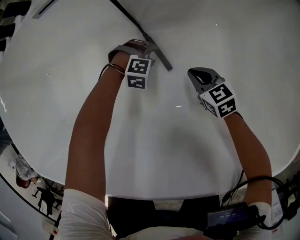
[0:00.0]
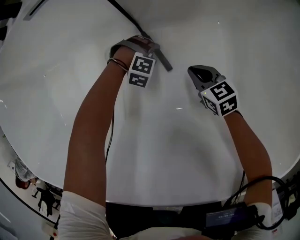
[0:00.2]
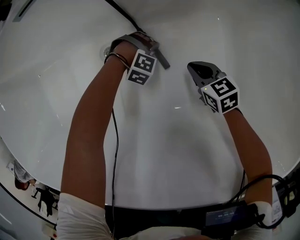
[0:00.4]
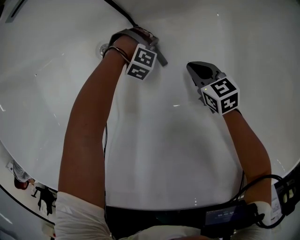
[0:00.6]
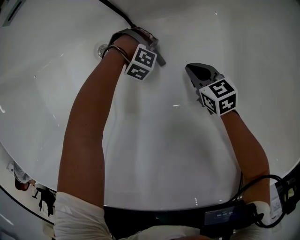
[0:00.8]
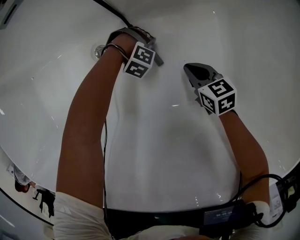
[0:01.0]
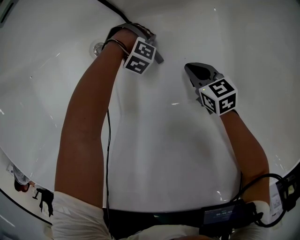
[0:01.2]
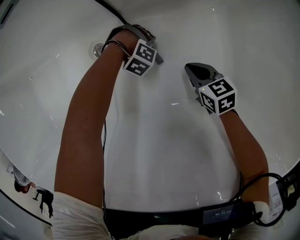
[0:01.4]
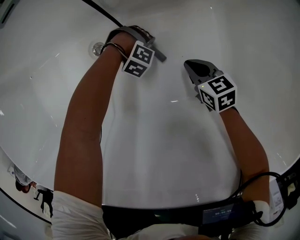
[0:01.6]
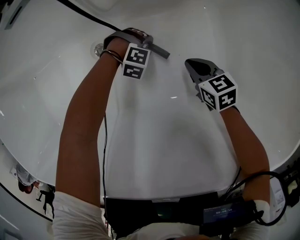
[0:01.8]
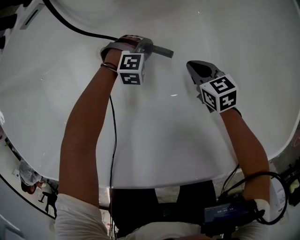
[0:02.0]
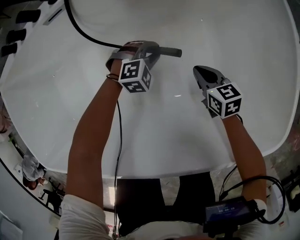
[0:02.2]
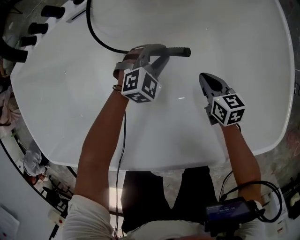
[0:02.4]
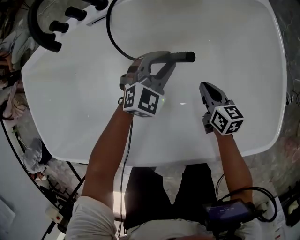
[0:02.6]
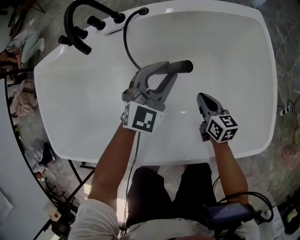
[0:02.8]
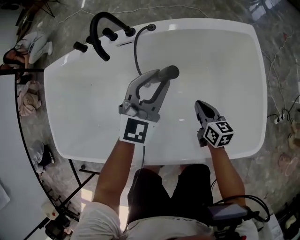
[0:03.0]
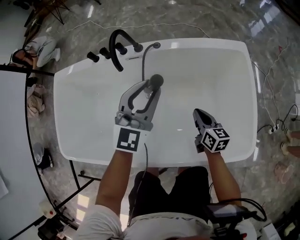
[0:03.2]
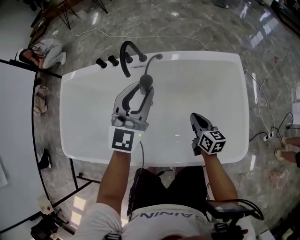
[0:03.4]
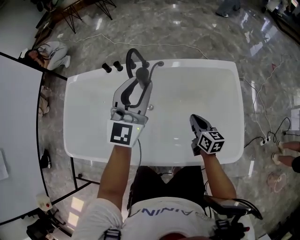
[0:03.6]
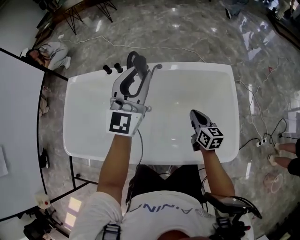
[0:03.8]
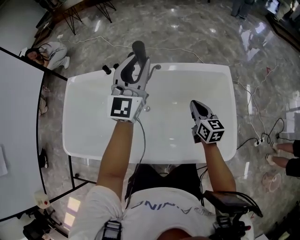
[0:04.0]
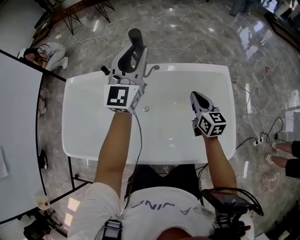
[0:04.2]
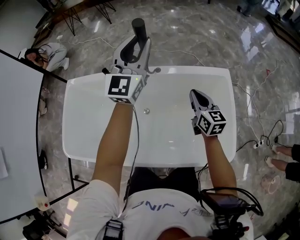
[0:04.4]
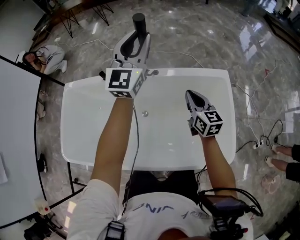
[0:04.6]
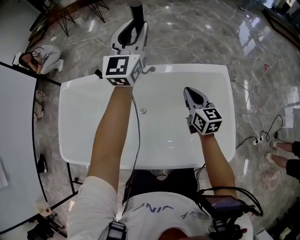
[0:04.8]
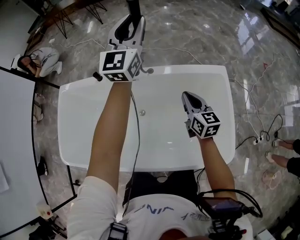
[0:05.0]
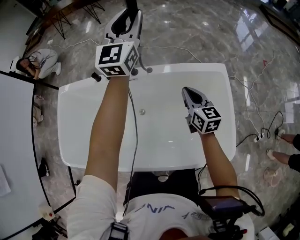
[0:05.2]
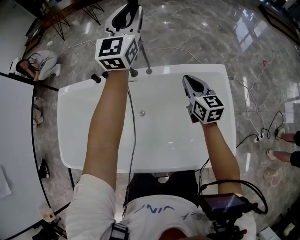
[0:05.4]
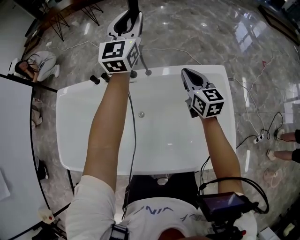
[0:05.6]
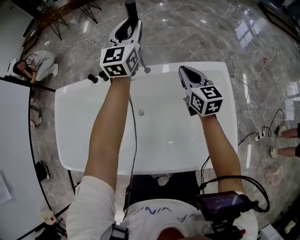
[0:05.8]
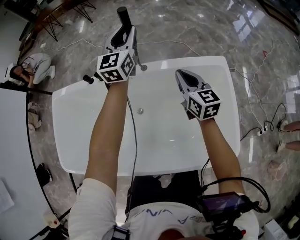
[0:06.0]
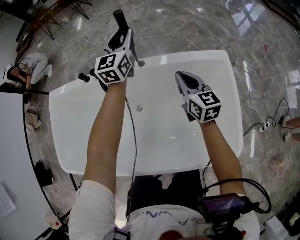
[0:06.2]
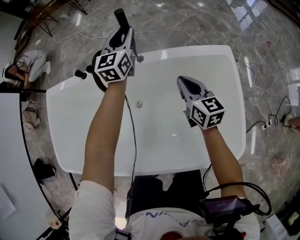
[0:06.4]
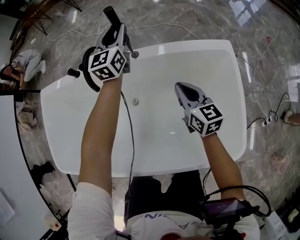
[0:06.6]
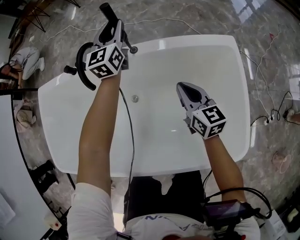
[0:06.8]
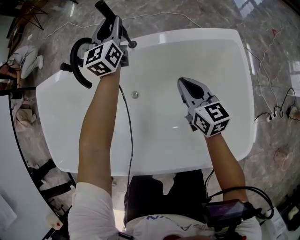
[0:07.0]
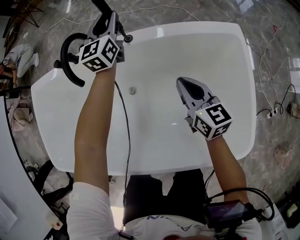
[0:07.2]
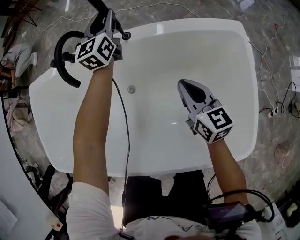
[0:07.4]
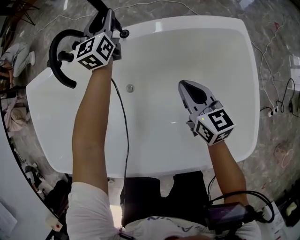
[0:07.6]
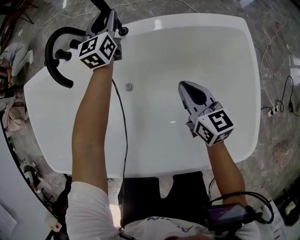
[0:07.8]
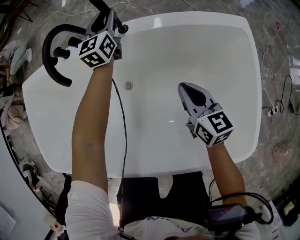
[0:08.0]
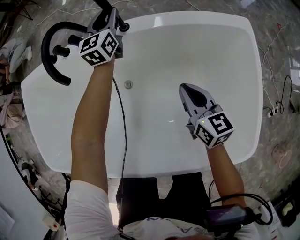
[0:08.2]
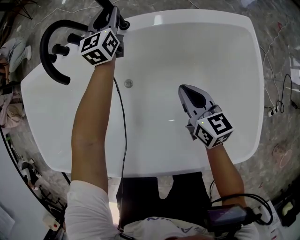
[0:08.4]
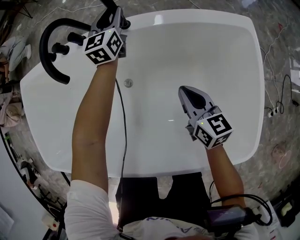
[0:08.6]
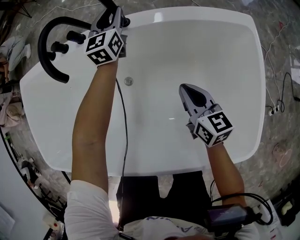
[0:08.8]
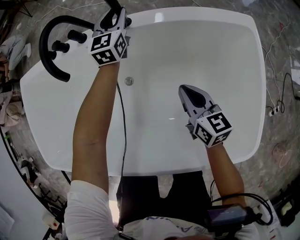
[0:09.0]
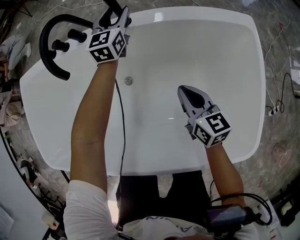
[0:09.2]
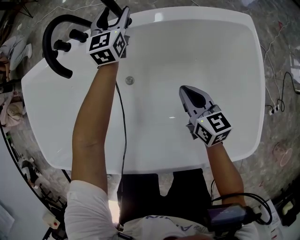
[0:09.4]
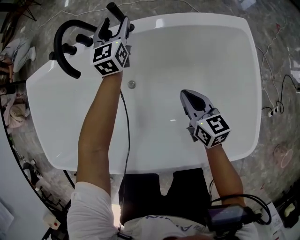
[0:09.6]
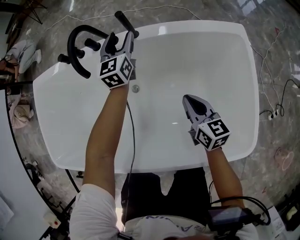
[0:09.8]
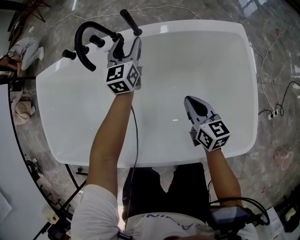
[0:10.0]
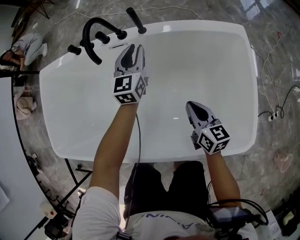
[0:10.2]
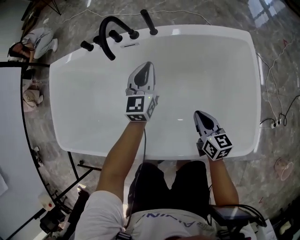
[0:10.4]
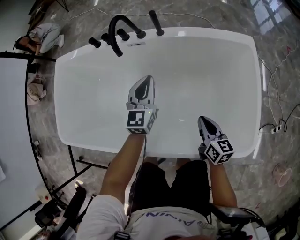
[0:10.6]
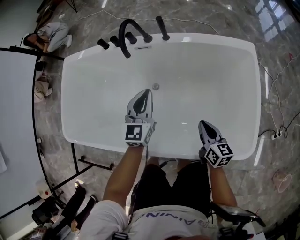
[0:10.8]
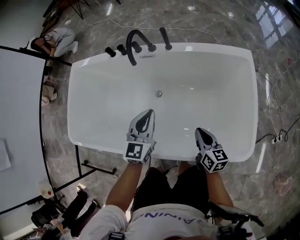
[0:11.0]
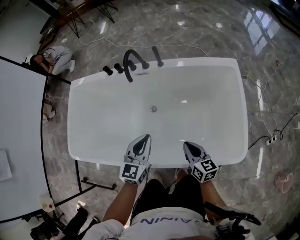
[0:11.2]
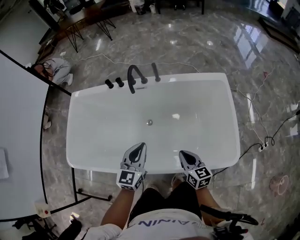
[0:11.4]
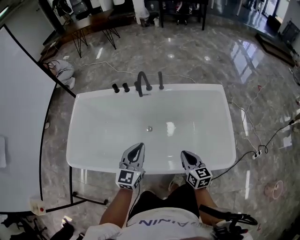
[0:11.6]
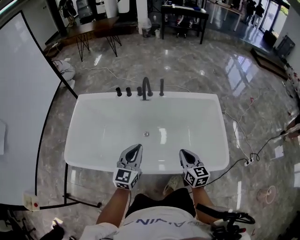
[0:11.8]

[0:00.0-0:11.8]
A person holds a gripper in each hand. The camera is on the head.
0:00.0 to 0:01.4: The left gripper rotates approximately 30 degrees.
0:01.4 to 0:03.0: The right gripper shifts approximately 35 cm upward, and rotates roughly 30 degrees. The left gripper travels upward by approximately 70 cm, and tilts its fingers roughly 70 degrees upward.
0:03.0 to 0:04.4: The two grippers go roughly 35 cm upward. The right gripper changes its angle by some 20 degrees. Meanwhile the left gripper swivels about 30 degrees.
0:04.4 to 0:06.0: The left gripper moves forward and downward, about 20 cm; the right gripper heads forward, covering about 10 cm.
0:06.0 to 0:07.4: The grippers both shift downward by roughly 20 cm.
0:07.4 to 0:08.8: The two grippers go some 10 cm downward.
0:08.8 to 0:10.4: The right gripper heads backward, covering some 15 cm; the left gripper moves backward, roughly 25 cm, and closes.
0:10.4 to 0:11.8: The left gripper travels backward, upward and to the left by about 50 cm. The right gripper moves upward, backward and to the left, roughly 35 cm.

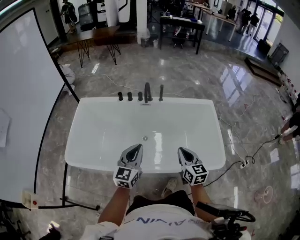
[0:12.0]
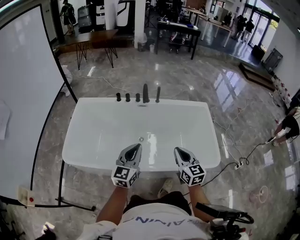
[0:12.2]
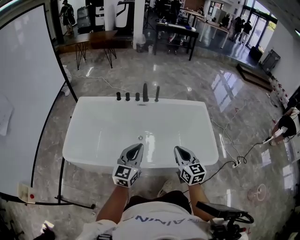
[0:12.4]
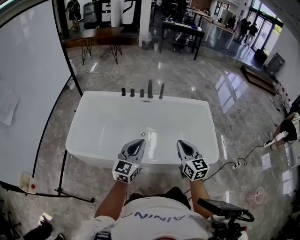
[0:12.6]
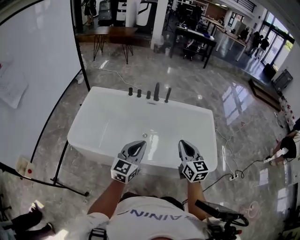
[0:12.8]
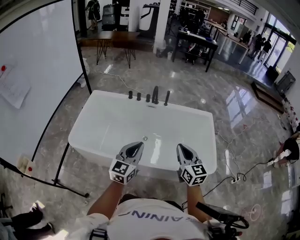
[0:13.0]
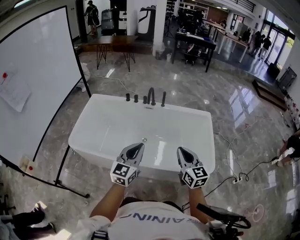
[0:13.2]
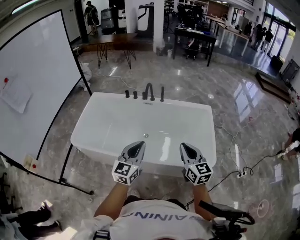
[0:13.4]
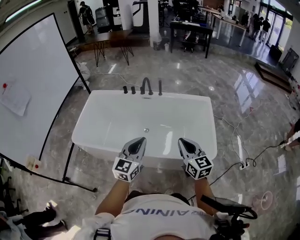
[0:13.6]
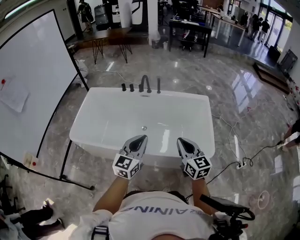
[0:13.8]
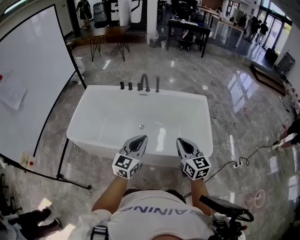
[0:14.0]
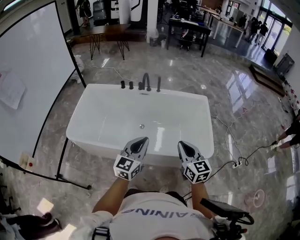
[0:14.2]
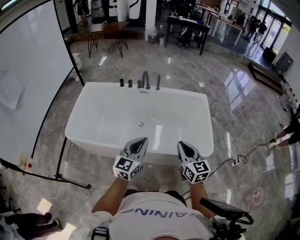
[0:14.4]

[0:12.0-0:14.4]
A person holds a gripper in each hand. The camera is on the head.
0:12.0 to 0:13.2: The left gripper heads backward, upward and to the right, covering approximately 15 cm. Meanwhile the right gripper is displaced upward, backward and to the right by approximately 15 cm.

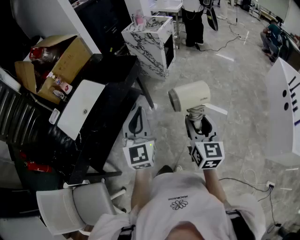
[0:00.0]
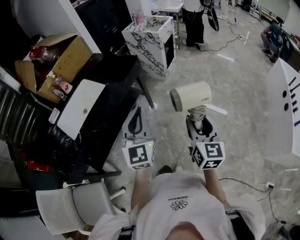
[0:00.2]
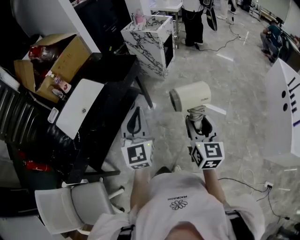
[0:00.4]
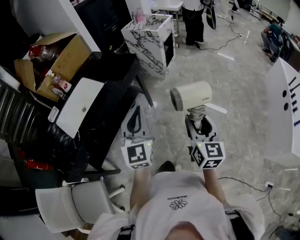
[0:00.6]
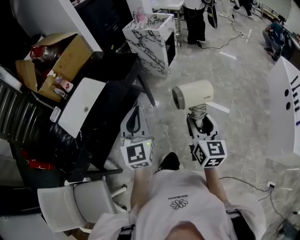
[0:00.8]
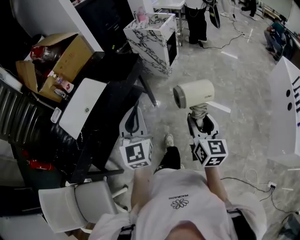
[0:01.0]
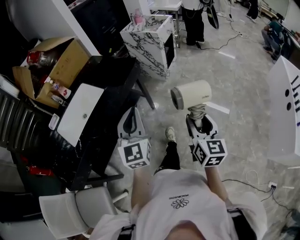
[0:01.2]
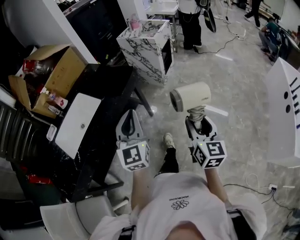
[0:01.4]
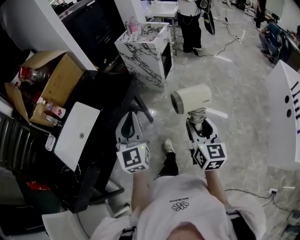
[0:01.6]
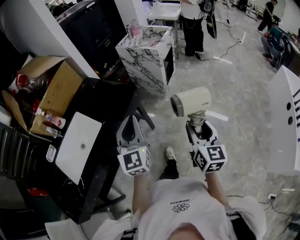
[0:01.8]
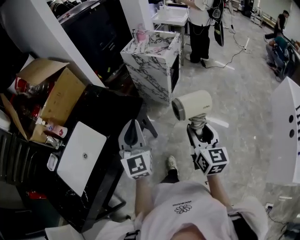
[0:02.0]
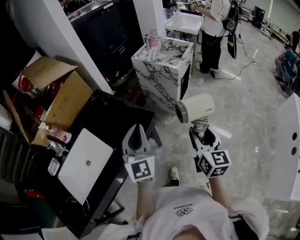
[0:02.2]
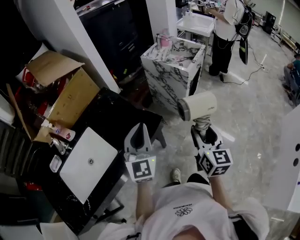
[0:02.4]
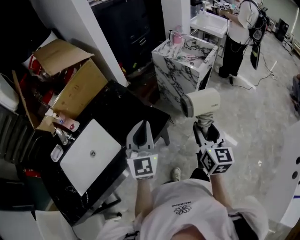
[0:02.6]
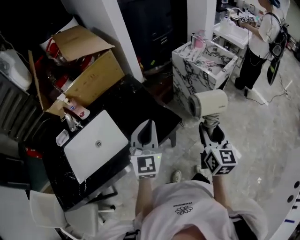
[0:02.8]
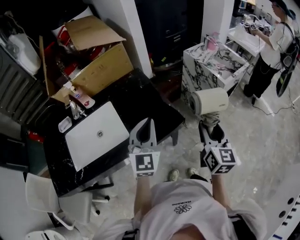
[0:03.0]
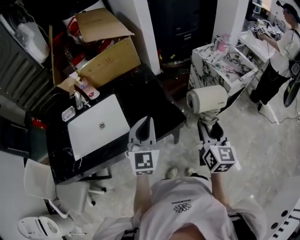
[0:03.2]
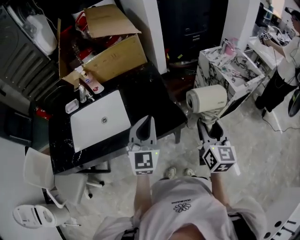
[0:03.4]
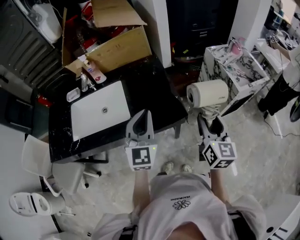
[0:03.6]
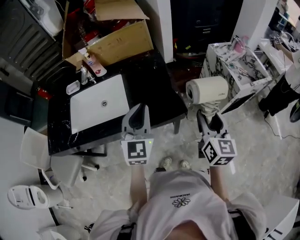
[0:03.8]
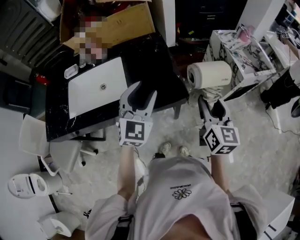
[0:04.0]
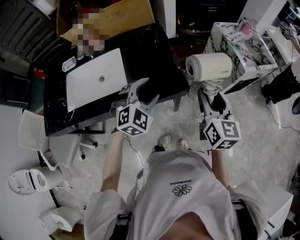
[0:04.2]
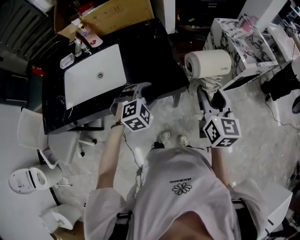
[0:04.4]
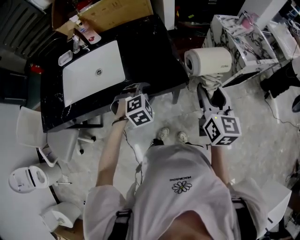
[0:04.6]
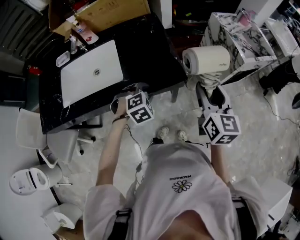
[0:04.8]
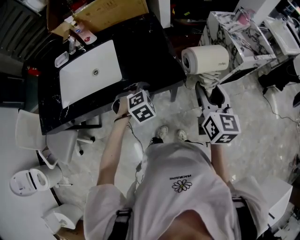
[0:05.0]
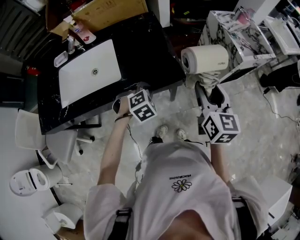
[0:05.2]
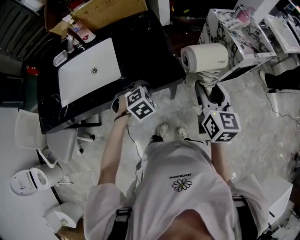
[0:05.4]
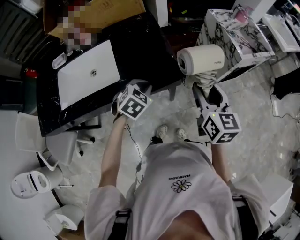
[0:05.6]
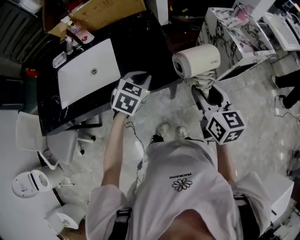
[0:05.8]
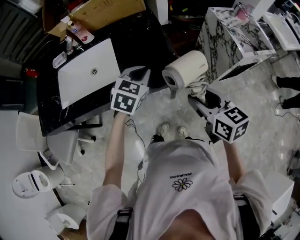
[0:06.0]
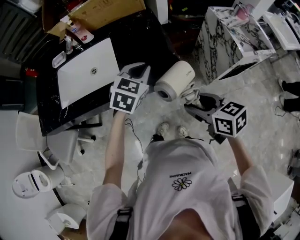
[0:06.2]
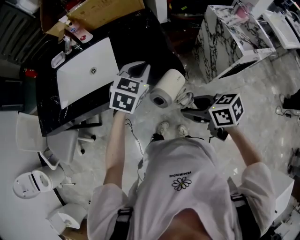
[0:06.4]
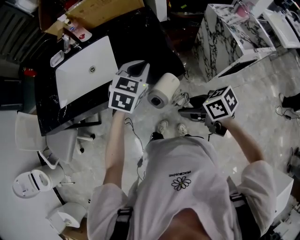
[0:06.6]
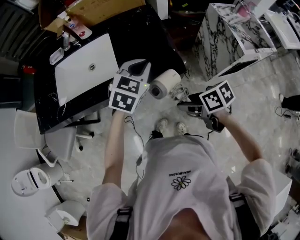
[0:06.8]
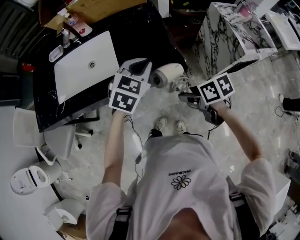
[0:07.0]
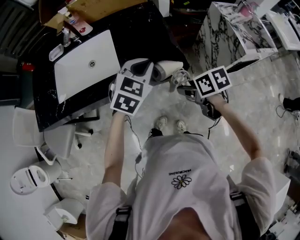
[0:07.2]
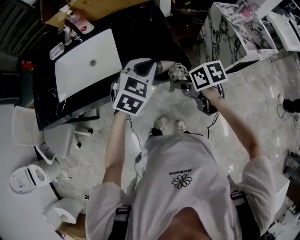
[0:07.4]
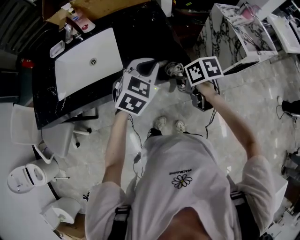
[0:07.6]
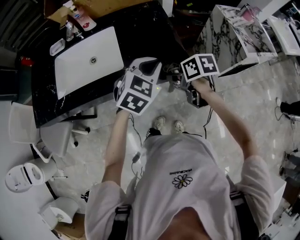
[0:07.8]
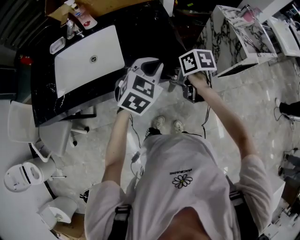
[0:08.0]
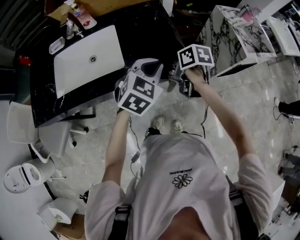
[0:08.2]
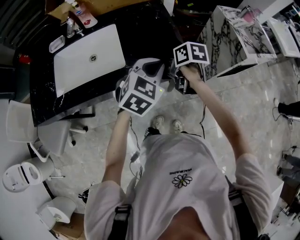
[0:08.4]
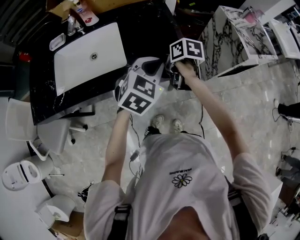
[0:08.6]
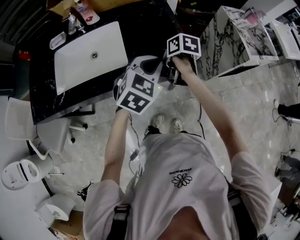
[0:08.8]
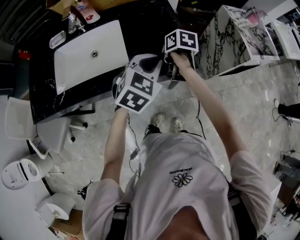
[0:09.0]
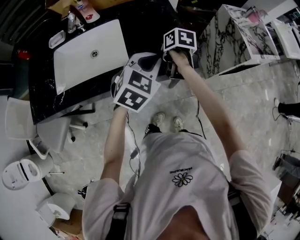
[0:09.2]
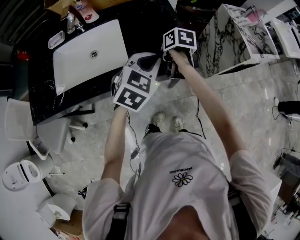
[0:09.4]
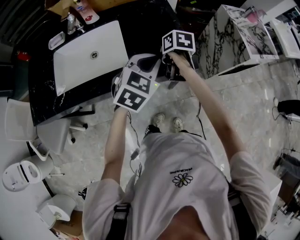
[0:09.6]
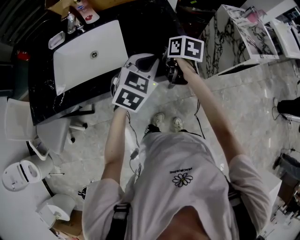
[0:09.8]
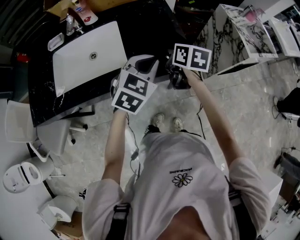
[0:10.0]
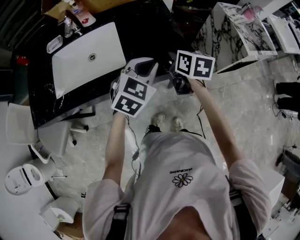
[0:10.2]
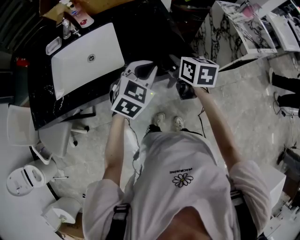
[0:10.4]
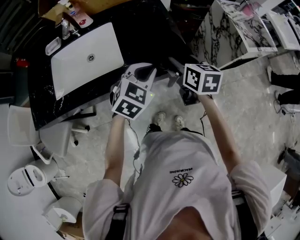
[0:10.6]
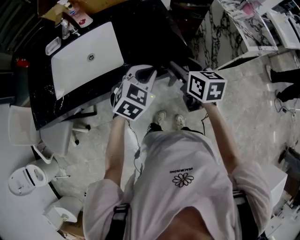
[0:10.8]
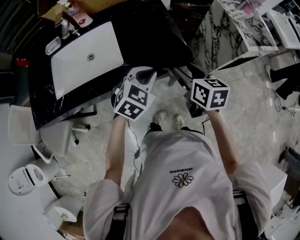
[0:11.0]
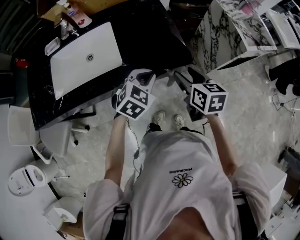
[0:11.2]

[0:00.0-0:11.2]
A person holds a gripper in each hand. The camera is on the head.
0:00.0 to 0:01.6: Both grippers move forward, about 15 cm.
0:01.6 to 0:03.2: The left gripper changes place by about 30 cm, and swivels roughly 30 degrees. Meanwhile the right gripper moves some 40 cm, and rotates approximately 30 degrees.
0:03.2 to 0:04.8: The left gripper heads downward, covering approximately 20 cm, tips its fingers downward by about 60 degrees, and opens its fingers.
0:04.8 to 0:06.4: The left gripper travels upward by roughly 15 cm, changes its angle by some 40 degrees, and closes up, while the right gripper ends up about 15 cm from where it was, and swivels roughly 60 degrees.
0:06.4 to 0:08.0: The right gripper travels forward by some 15 cm, and turns by approximately 30 degrees.
0:08.0 to 0:09.6: The right gripper travels forward by some 10 cm.
0:09.6 to 0:11.2: The left gripper heads downward, covering roughly 5 cm. The right gripper heads backward, to the right and upward, covering roughly 20 cm, and swivels approximately 30 degrees.
